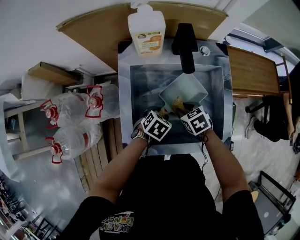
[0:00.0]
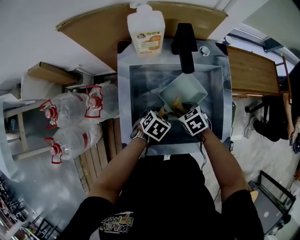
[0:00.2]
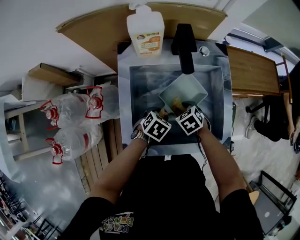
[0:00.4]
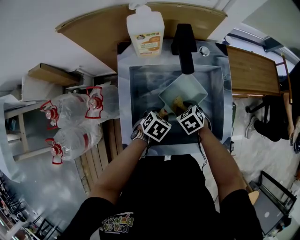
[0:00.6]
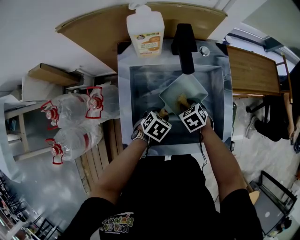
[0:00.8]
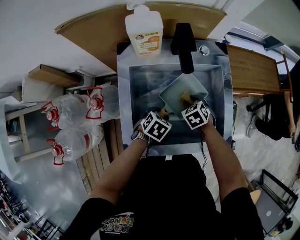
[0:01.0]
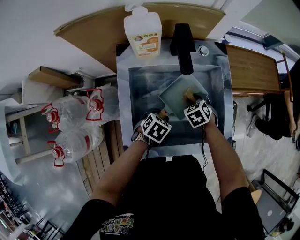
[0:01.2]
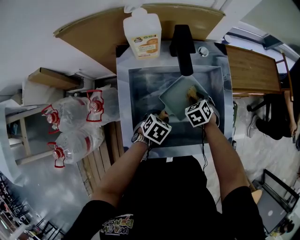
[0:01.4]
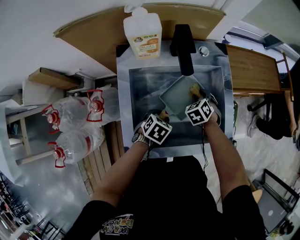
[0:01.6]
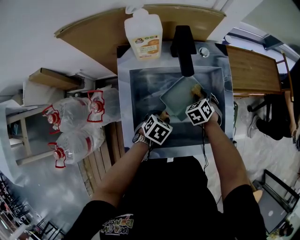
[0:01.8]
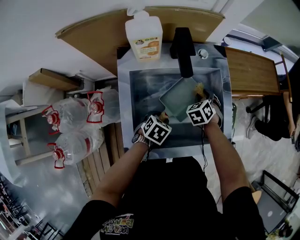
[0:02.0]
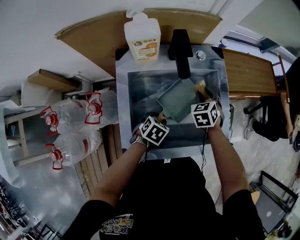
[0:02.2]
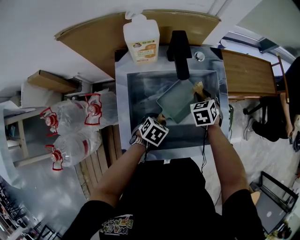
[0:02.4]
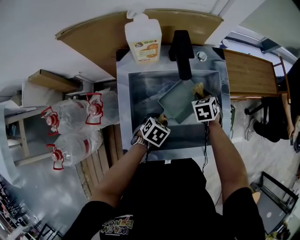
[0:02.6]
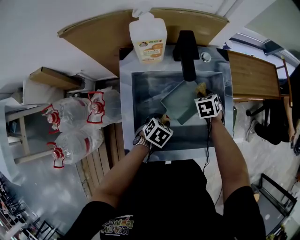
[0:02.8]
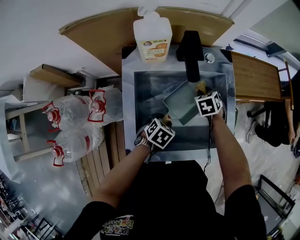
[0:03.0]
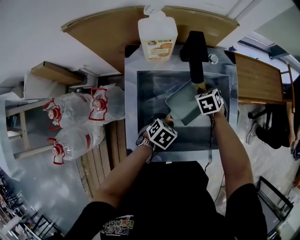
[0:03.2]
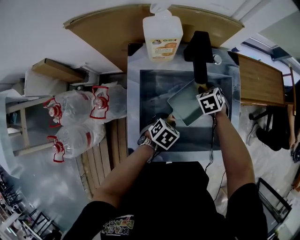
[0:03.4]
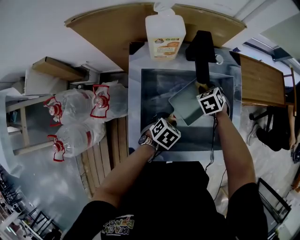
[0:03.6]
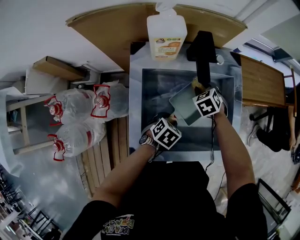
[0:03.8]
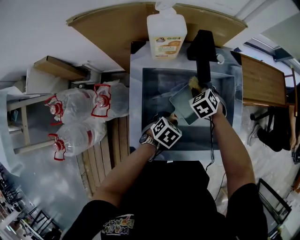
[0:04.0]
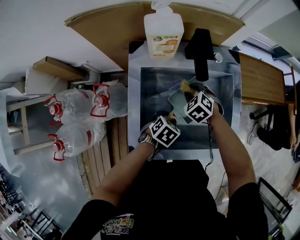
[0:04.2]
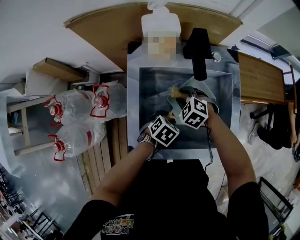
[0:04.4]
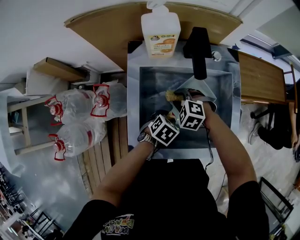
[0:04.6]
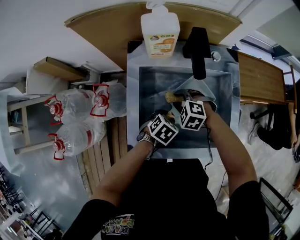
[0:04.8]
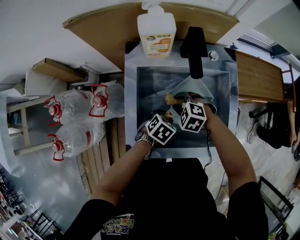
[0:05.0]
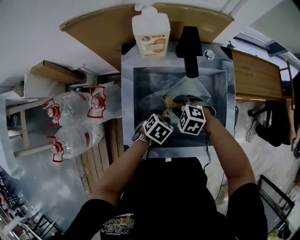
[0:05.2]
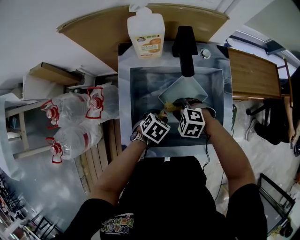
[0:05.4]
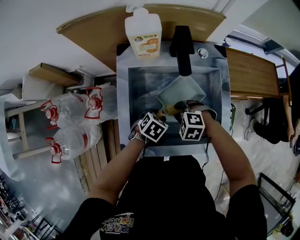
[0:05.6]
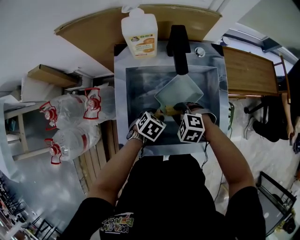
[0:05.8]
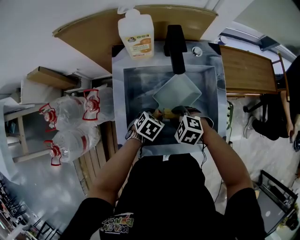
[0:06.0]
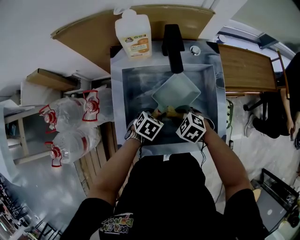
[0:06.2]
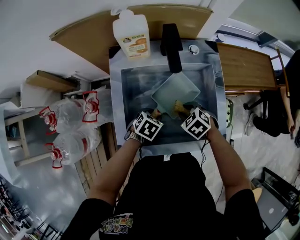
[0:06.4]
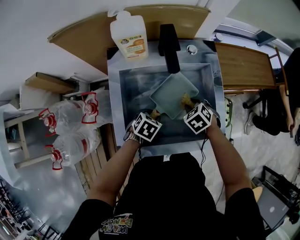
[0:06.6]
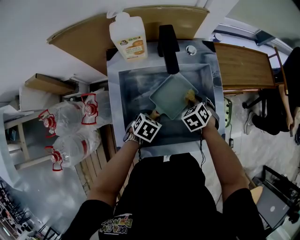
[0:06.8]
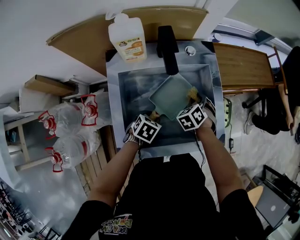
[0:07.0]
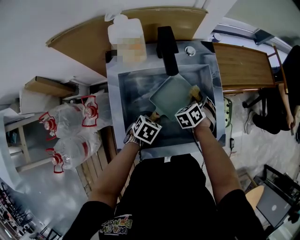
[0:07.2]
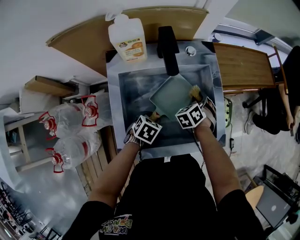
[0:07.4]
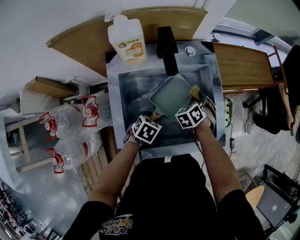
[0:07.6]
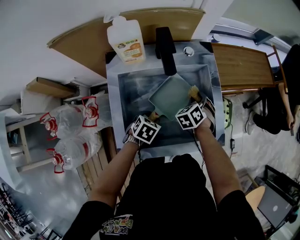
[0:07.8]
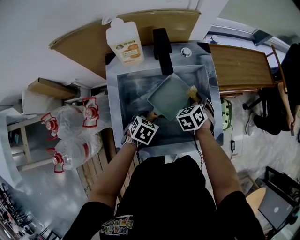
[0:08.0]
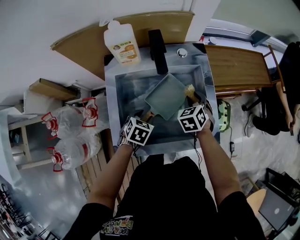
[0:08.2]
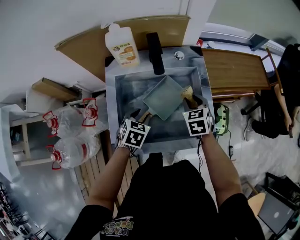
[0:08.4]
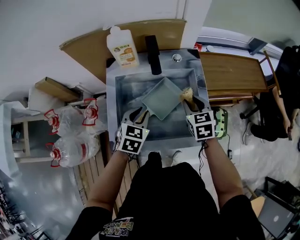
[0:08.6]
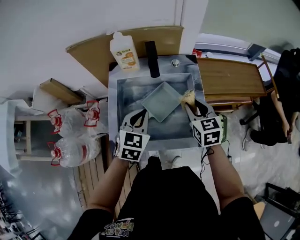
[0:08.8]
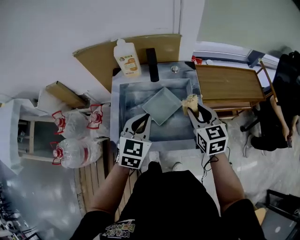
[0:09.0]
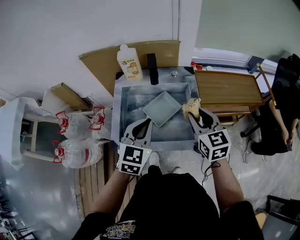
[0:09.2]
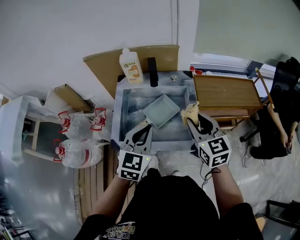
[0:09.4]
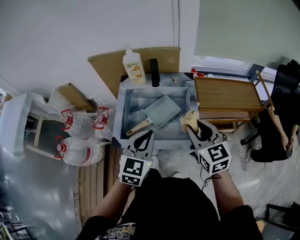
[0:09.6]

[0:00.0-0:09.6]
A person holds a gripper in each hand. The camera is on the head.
0:00.0 to 0:01.6: The right gripper shifts by approximately 10 cm, and swivels about 30 degrees.
0:01.6 to 0:03.2: The right gripper changes place by roughly 5 cm.
0:03.2 to 0:04.8: The right gripper moves some 15 cm, and rotates around the line of its fingers by approximately 50 degrees, counterclockwise from behind.
0:04.8 to 0:06.4: The right gripper moves some 10 cm, and swivels about 30 degrees.
0:06.4 to 0:08.0: The right gripper shifts by roughly 10 cm, and turns by some 40 degrees.
0:08.0 to 0:09.6: The two grippers go roughly 30 cm upward. The right gripper points its fingers about 40 degrees further upward. The left gripper tips its fingers upward by about 40 degrees, and closes its fingers.

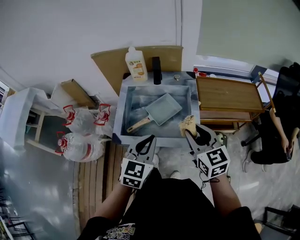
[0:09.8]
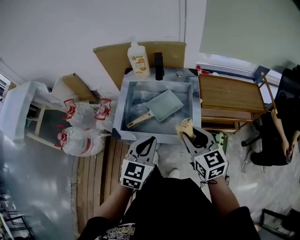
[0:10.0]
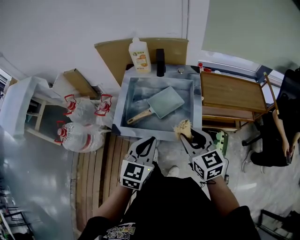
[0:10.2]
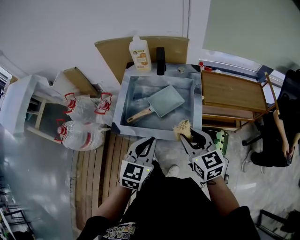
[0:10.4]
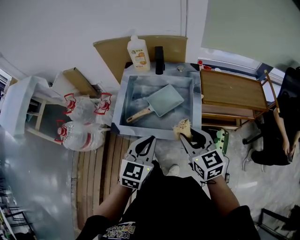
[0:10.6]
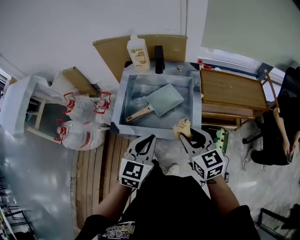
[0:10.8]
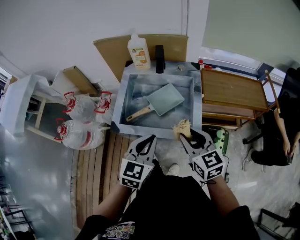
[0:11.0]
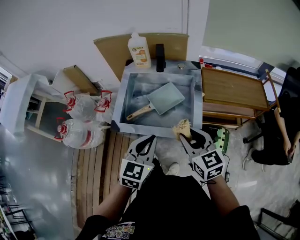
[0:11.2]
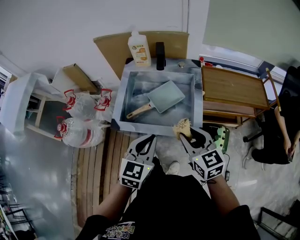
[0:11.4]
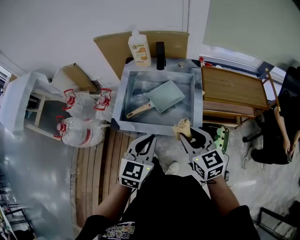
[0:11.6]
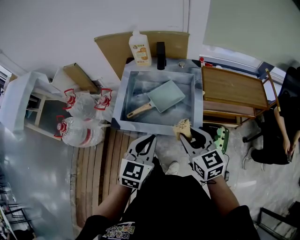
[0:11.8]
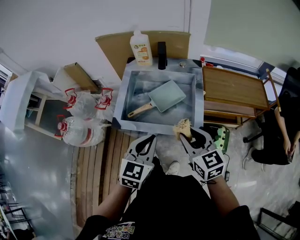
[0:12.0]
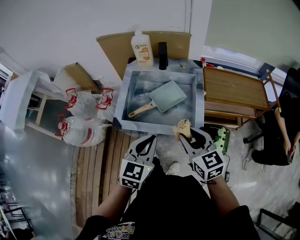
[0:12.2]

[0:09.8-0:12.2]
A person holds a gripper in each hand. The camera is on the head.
0:09.8 to 0:11.0: The right gripper moves some 5 cm.
0:11.0 to 0:12.2: There are only small adjustments of the grippers.

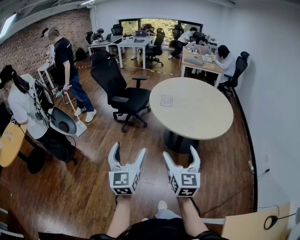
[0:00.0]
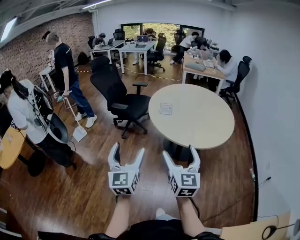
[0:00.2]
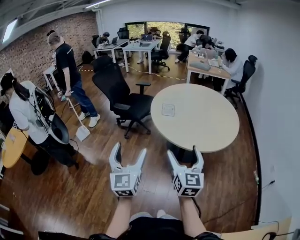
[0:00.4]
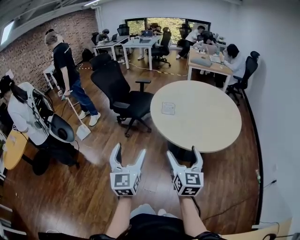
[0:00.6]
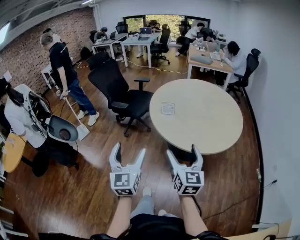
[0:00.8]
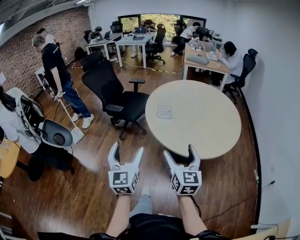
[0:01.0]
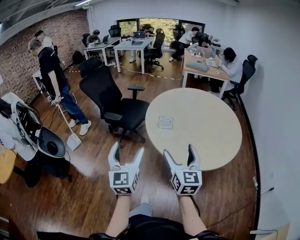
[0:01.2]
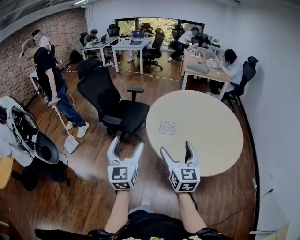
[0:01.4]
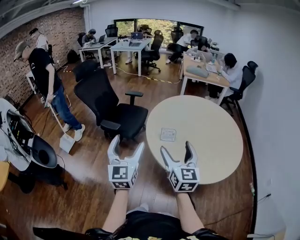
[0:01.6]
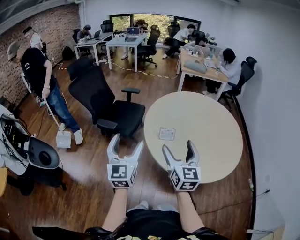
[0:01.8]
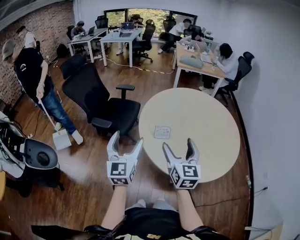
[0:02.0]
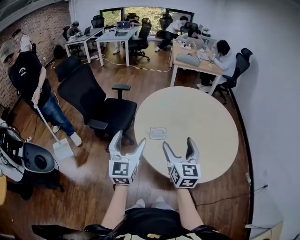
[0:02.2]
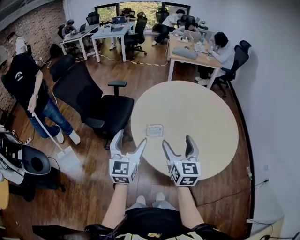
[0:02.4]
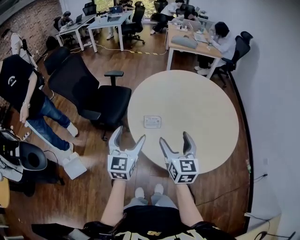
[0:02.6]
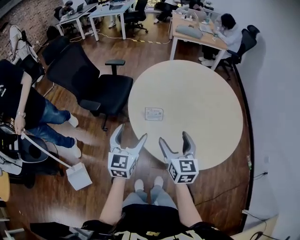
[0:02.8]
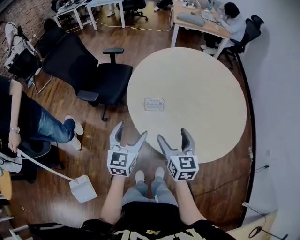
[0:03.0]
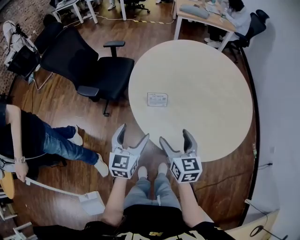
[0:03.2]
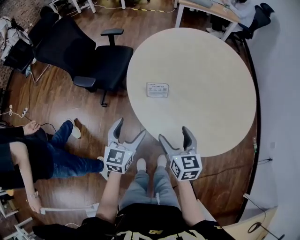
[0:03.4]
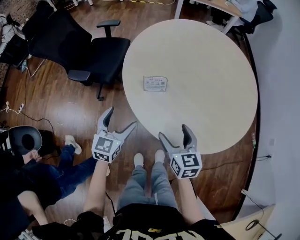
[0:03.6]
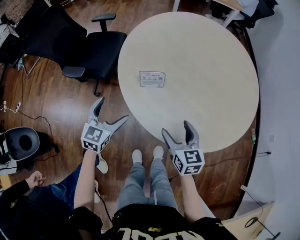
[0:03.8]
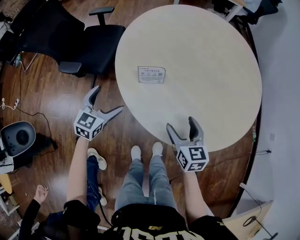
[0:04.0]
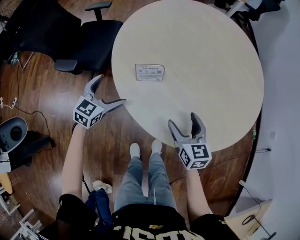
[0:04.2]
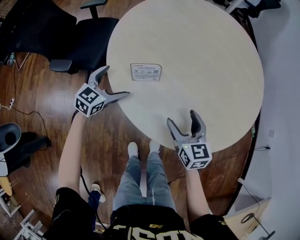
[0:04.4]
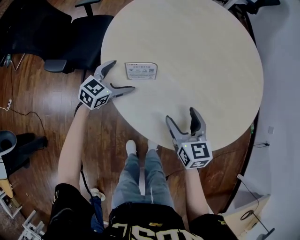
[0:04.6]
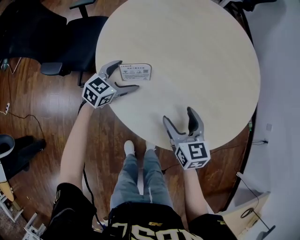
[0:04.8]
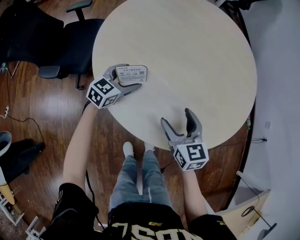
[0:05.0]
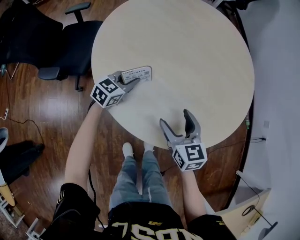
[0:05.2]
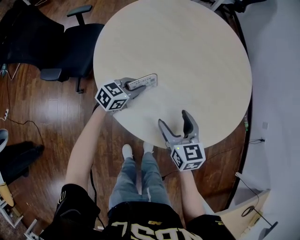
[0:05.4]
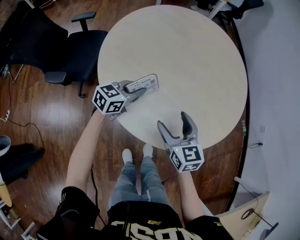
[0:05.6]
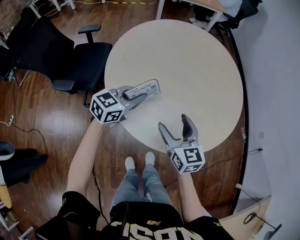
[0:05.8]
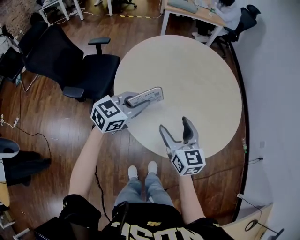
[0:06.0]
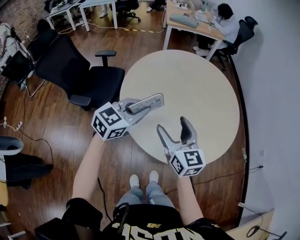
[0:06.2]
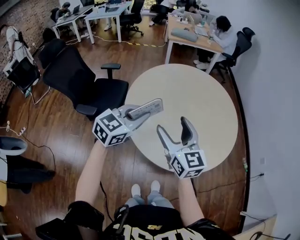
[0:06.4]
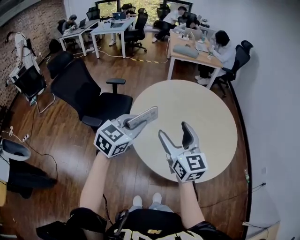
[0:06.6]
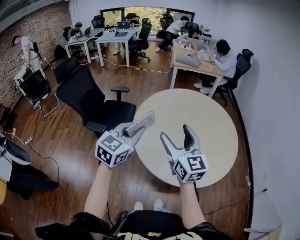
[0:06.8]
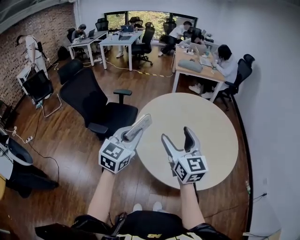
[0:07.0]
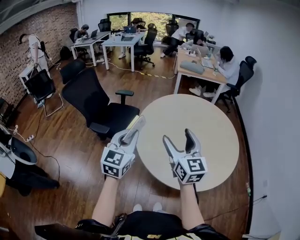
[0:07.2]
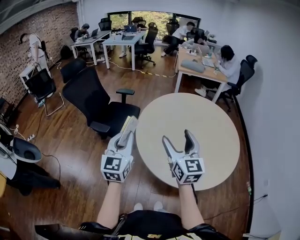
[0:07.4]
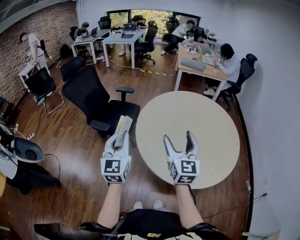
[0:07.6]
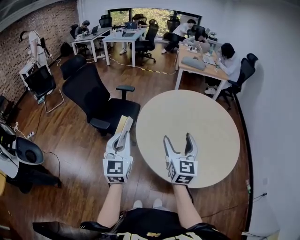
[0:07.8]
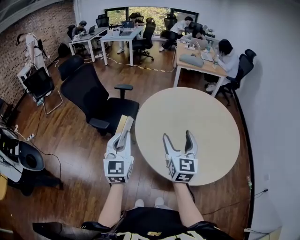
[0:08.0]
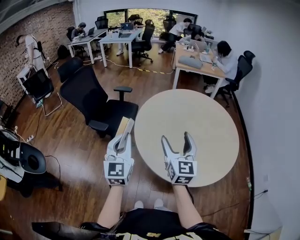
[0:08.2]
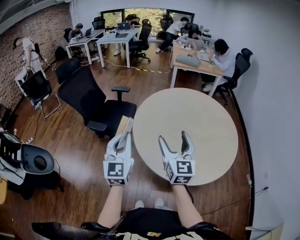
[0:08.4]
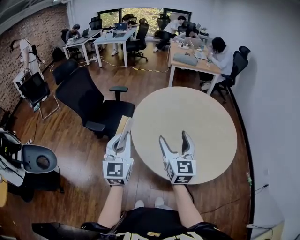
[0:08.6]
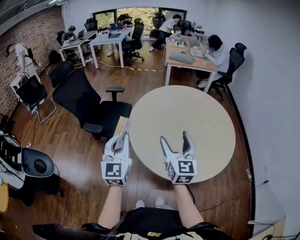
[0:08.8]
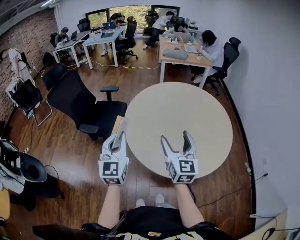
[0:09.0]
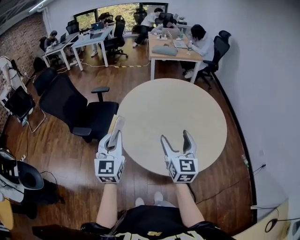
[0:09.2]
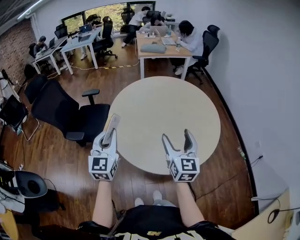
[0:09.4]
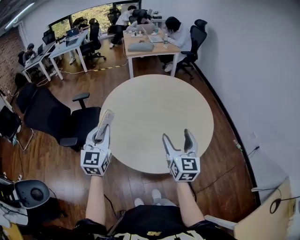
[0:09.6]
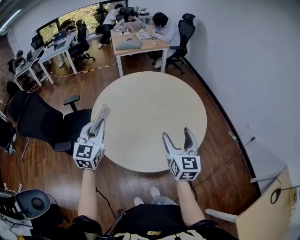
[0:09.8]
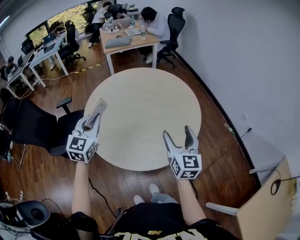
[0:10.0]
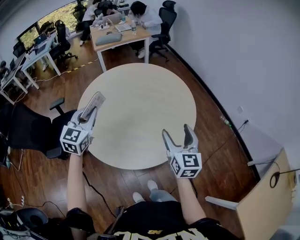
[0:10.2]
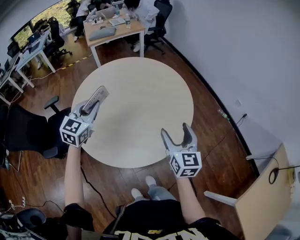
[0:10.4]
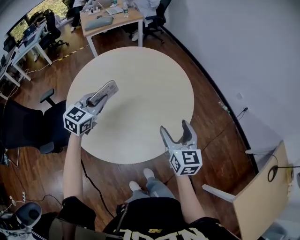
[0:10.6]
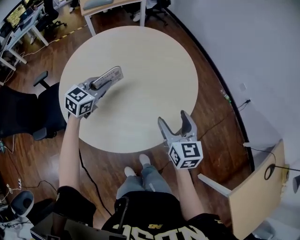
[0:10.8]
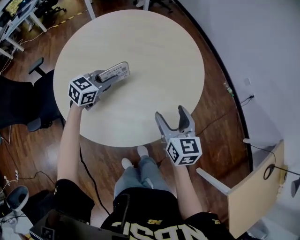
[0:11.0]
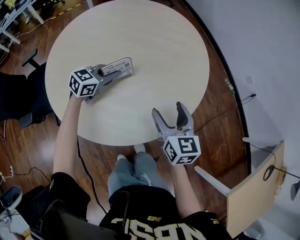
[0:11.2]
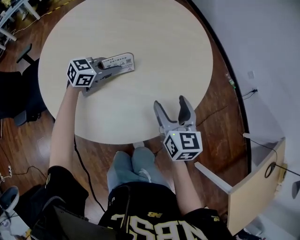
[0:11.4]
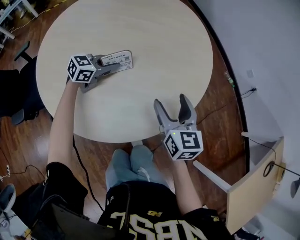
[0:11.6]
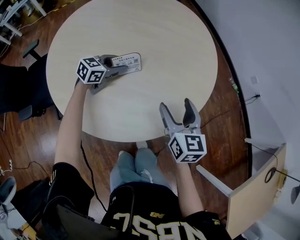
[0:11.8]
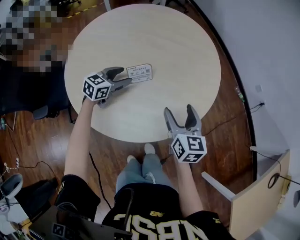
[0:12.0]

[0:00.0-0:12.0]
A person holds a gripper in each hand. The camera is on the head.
0:00.0 to 0:01.6: The two grippers travel together, forward, some 40 cm.
0:01.6 to 0:03.0: The left gripper travels downward, to the right and forward by some 25 cm, and turns by roughly 20 degrees. Meanwhile the right gripper travels downward, forward and to the right by approximately 20 cm.
0:03.0 to 0:04.4: The right gripper travels downward by some 15 cm, while the left gripper moves downward and forward, some 30 cm, and rotates about 30 degrees.
0:04.4 to 0:06.0: The right gripper shifts roughly 15 cm upward. The left gripper shifts roughly 25 cm upward and to the right, and closes.
0:06.0 to 0:07.6: The right gripper shifts roughly 15 cm upward. The left gripper shifts by some 25 cm, and swivels approximately 60 degrees.
0:07.6 to 0:09.0: The left gripper travels to the right by approximately 5 cm; the right gripper shifts by approximately 5 cm.
0:09.0 to 0:10.4: The right gripper shifts by approximately 25 cm, and changes its angle by some 30 degrees. The left gripper shifts by approximately 25 cm, and changes its angle by approximately 50 degrees.
0:10.4 to 0:12.0: The left gripper shifts approximately 30 cm downward, rotates roughly 30 degrees, and opens, while the right gripper moves downward, some 15 cm.
